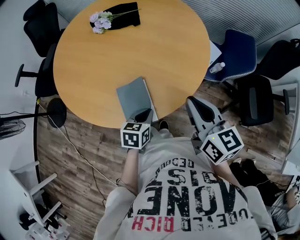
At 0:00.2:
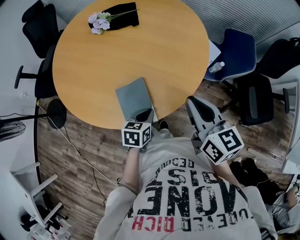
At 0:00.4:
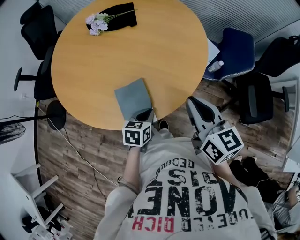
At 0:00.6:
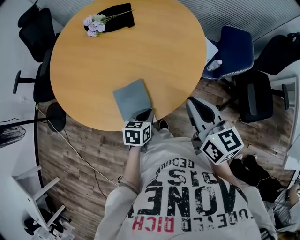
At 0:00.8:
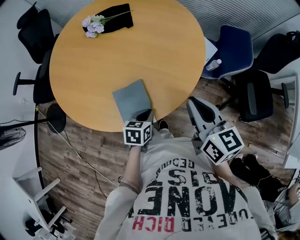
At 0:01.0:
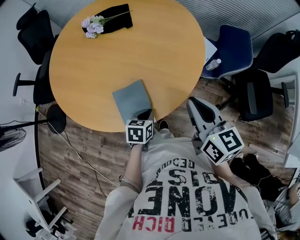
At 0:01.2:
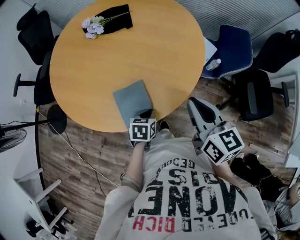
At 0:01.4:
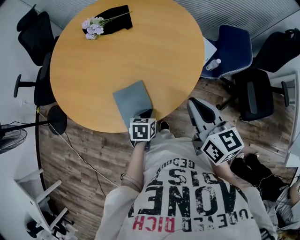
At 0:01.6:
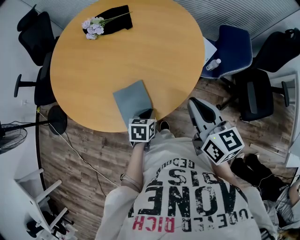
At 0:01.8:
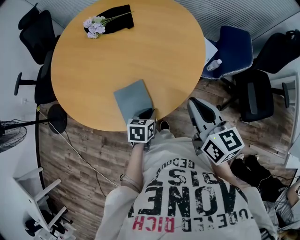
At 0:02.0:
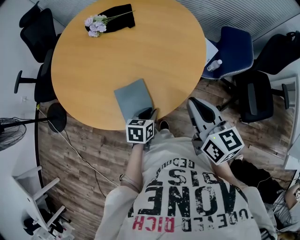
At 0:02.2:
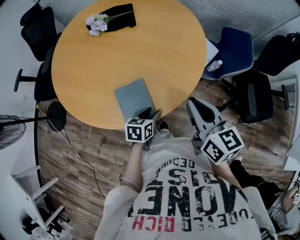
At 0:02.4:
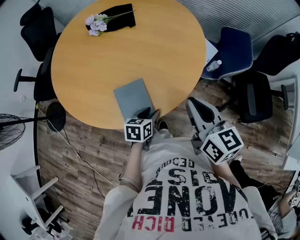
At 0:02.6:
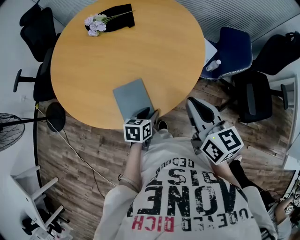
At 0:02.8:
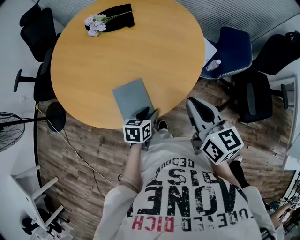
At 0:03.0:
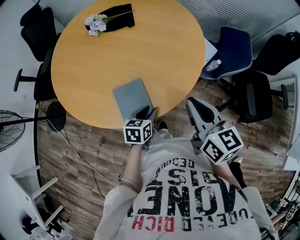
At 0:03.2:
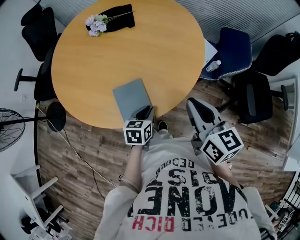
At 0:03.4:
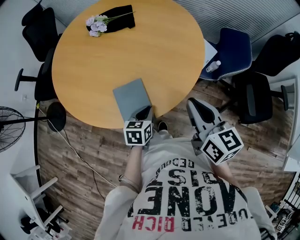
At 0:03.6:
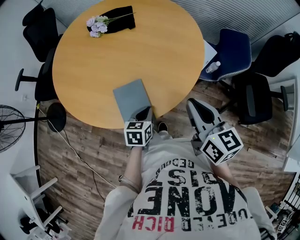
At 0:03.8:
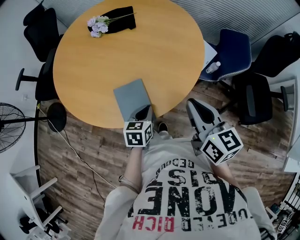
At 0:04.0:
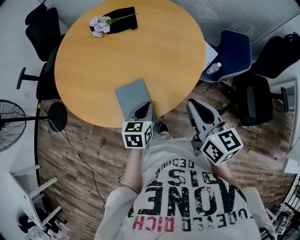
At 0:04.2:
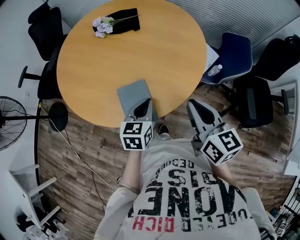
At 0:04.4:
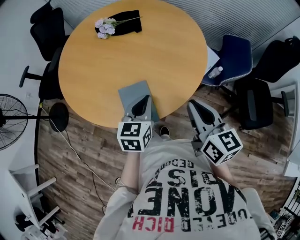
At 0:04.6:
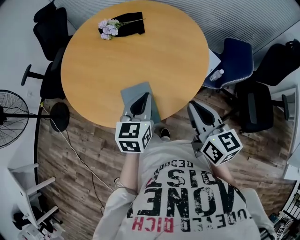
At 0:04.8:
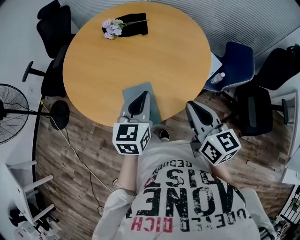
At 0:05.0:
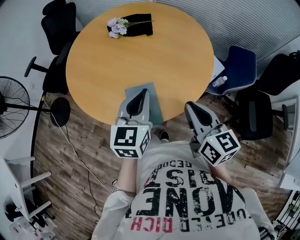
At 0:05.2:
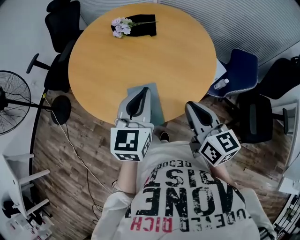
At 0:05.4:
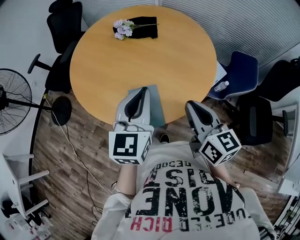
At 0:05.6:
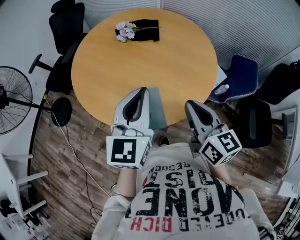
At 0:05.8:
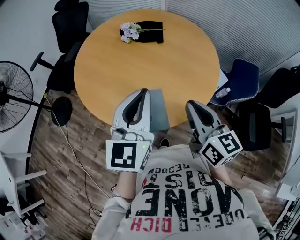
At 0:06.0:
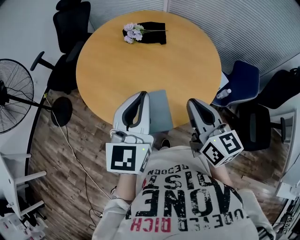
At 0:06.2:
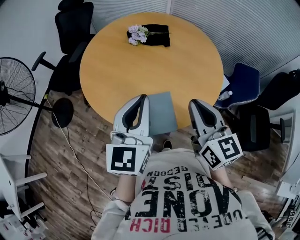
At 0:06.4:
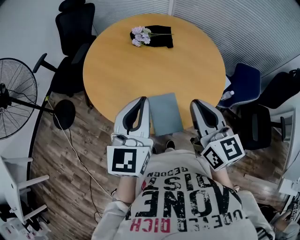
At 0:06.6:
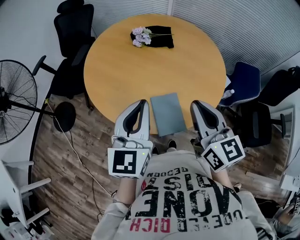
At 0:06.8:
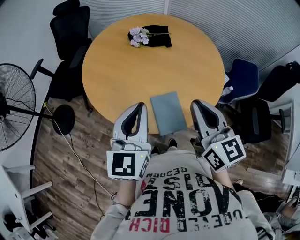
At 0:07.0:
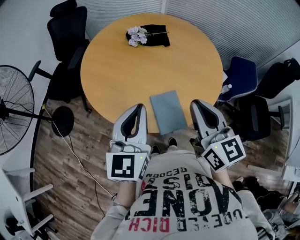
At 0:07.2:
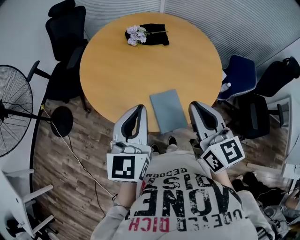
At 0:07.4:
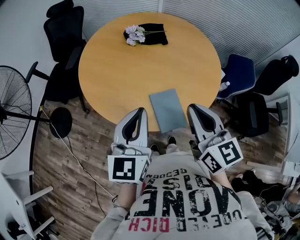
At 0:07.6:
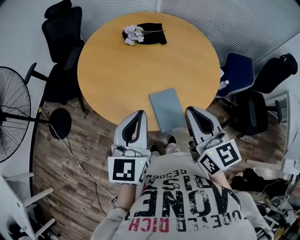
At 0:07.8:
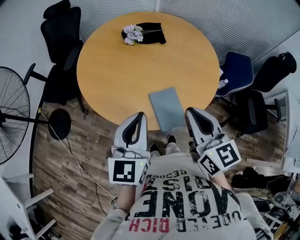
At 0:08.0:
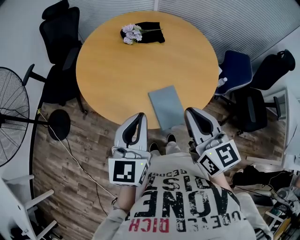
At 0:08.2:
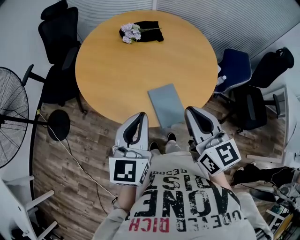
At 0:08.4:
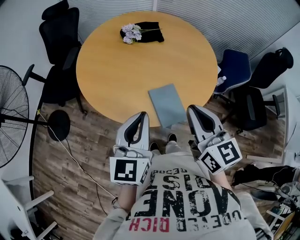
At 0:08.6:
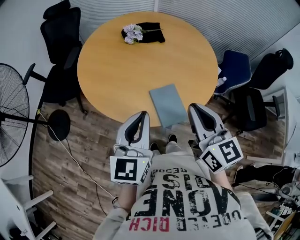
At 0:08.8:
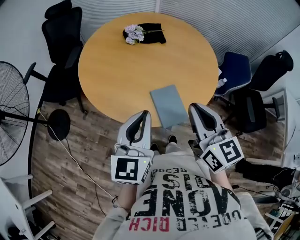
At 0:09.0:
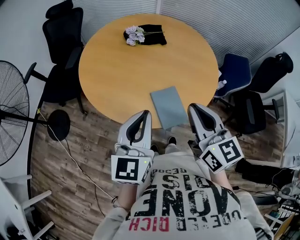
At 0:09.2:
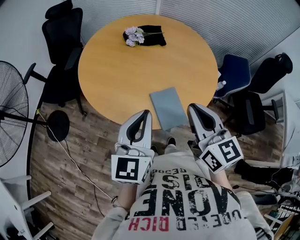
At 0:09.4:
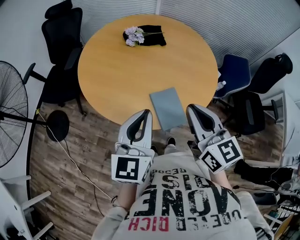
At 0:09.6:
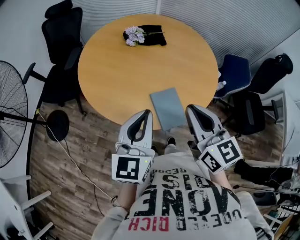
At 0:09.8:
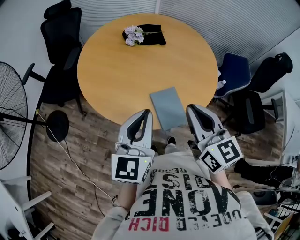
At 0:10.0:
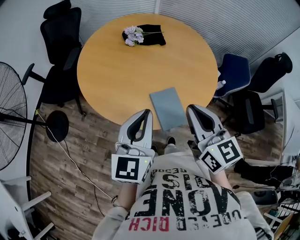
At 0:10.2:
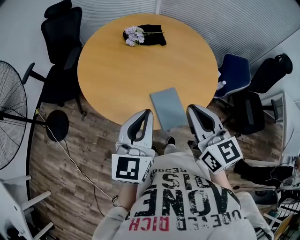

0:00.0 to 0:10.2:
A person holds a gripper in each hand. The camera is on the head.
0:00.0 to 0:01.4: The left gripper ends up roughly 5 cm from where it was.
0:01.4 to 0:03.0: The left gripper opens its fingers.
0:03.0 to 0:04.4: The left gripper moves upward, about 15 cm, swivels some 30 degrees, and closes its fingers.
0:04.4 to 0:05.8: The right gripper is displaced to the left by roughly 5 cm, while the left gripper moves upward and to the left, roughly 20 cm, and swivels roughly 30 degrees.
0:05.8 to 0:07.2: The grippers both shift to the left by some 10 cm.
0:07.2 to 0:10.2: There are only small adjustments of the grippers.

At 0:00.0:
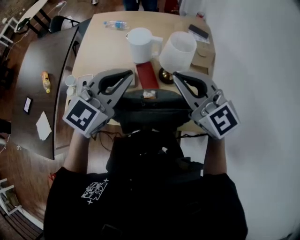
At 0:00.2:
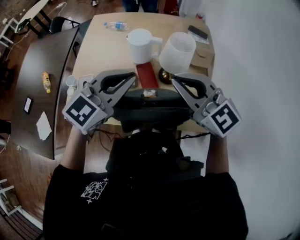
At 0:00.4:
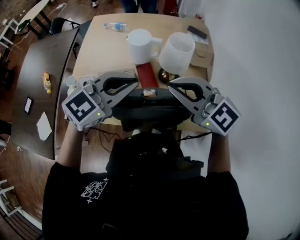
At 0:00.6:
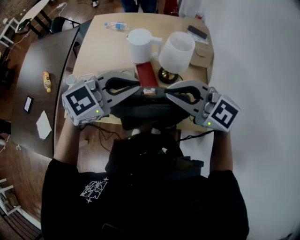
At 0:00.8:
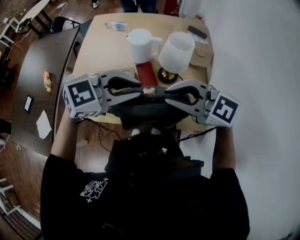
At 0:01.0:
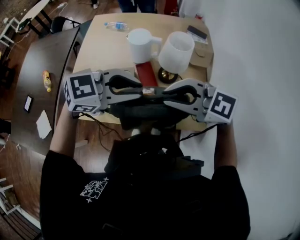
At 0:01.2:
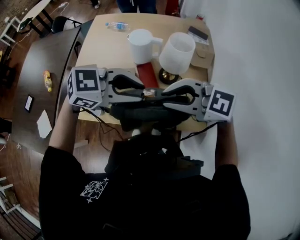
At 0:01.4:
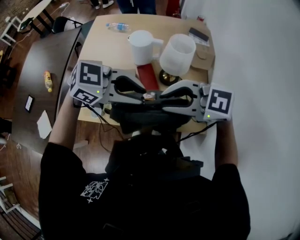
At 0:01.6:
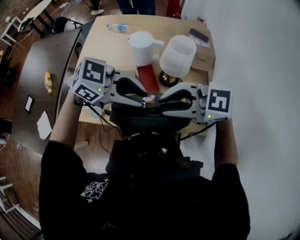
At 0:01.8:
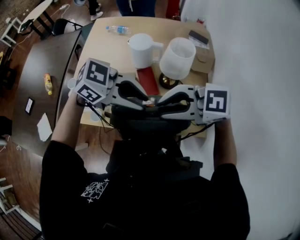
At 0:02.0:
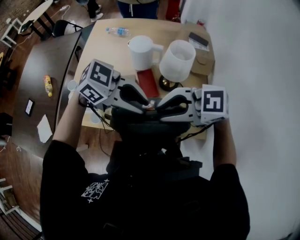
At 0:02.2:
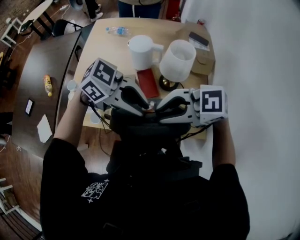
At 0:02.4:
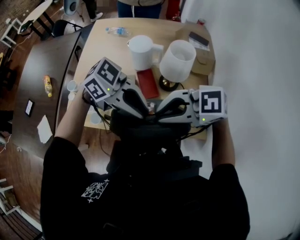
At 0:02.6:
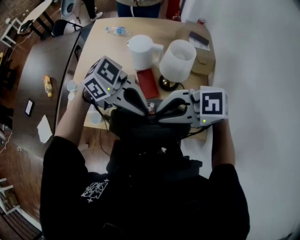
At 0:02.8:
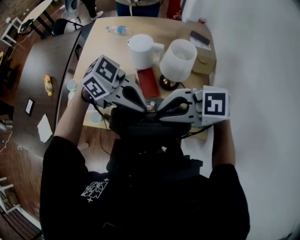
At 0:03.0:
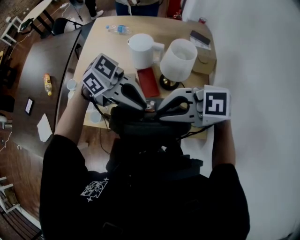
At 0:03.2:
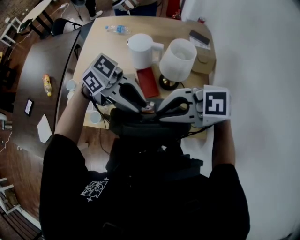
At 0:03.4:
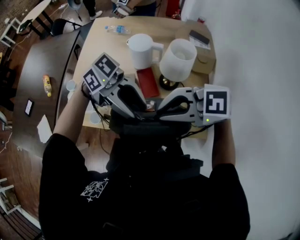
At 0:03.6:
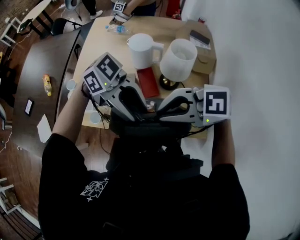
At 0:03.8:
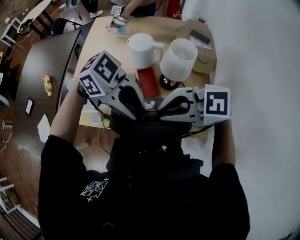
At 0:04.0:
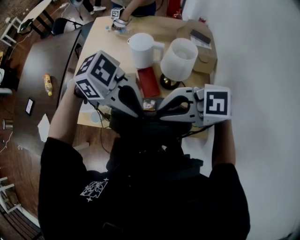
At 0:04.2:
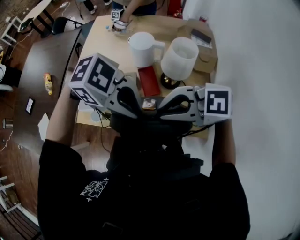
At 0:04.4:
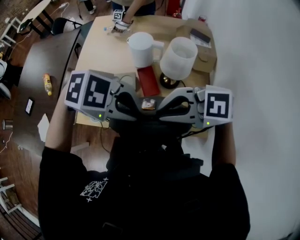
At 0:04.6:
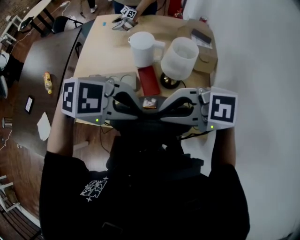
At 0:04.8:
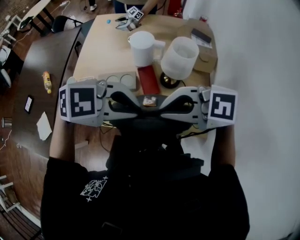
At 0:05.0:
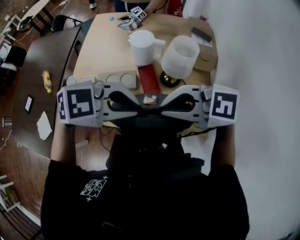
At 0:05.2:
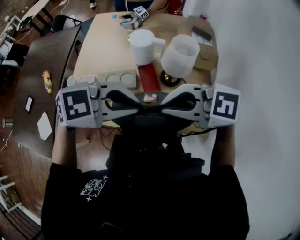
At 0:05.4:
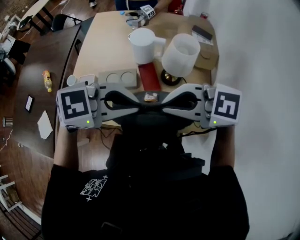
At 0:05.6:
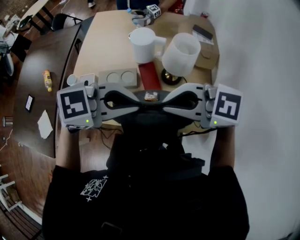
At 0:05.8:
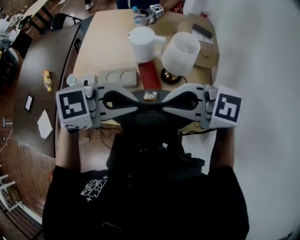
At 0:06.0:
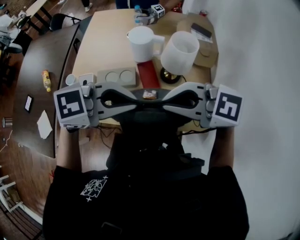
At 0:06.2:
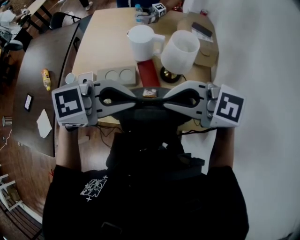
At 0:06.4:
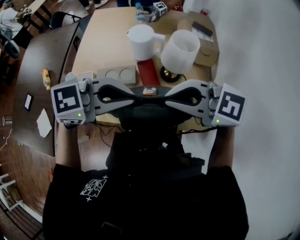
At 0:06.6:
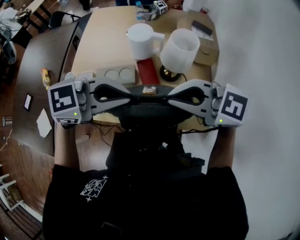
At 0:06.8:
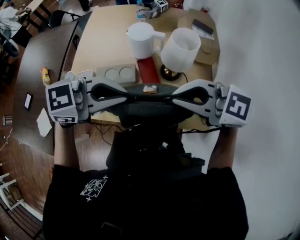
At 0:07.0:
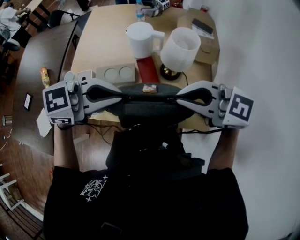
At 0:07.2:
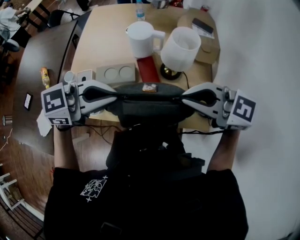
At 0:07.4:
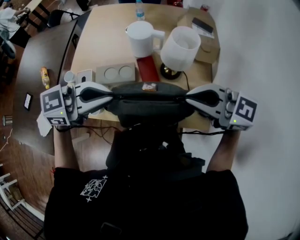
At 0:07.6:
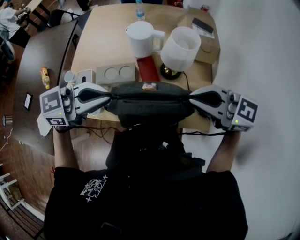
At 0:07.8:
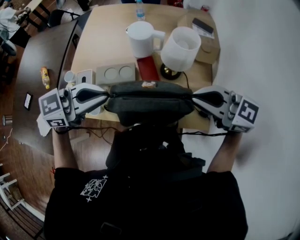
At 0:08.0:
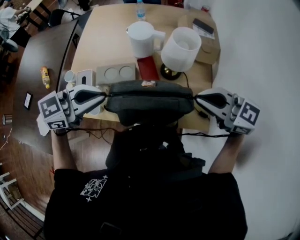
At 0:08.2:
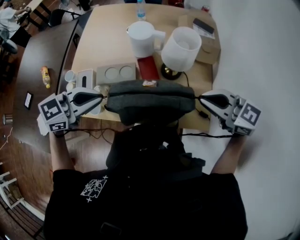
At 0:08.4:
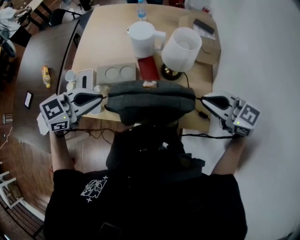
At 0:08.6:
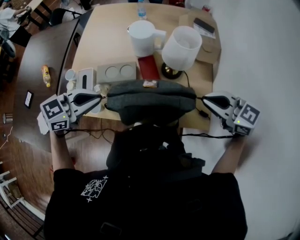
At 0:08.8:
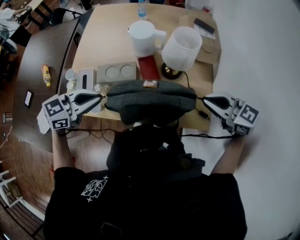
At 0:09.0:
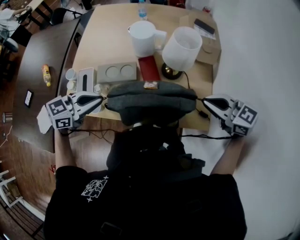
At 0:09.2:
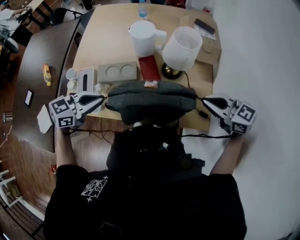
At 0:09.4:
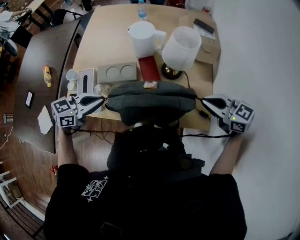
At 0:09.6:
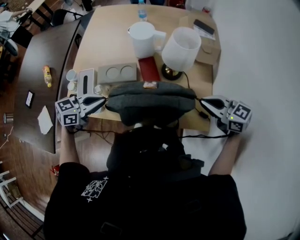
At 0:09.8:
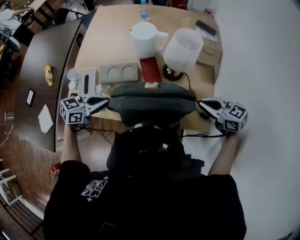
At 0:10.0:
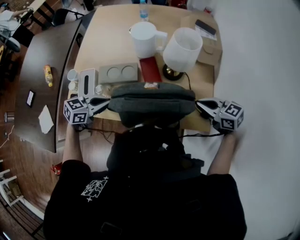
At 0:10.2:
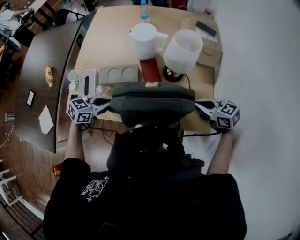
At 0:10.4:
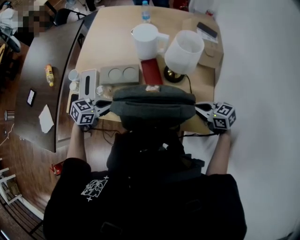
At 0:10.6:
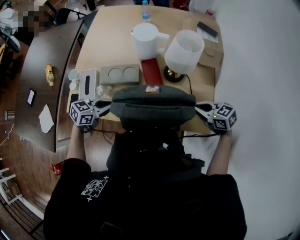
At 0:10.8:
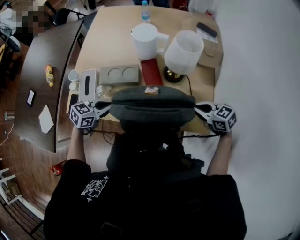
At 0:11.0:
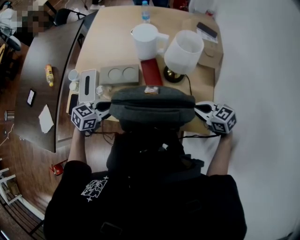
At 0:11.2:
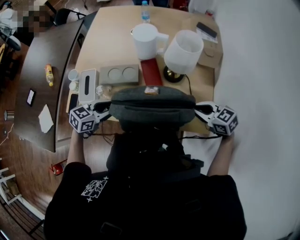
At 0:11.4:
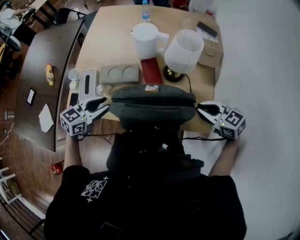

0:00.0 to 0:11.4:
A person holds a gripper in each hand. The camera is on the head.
0:00.0 to 0:01.4: The right gripper moves some 10 cm, changes its angle by approximately 40 degrees, and opens up. Meanwhile the left gripper changes place by about 10 cm, swivels approximately 60 degrees, and opens up.
0:01.4 to 0:02.8: The left gripper changes its angle by about 20 degrees, and closes up.
0:02.8 to 0:04.2: The left gripper turns by approximately 20 degrees, and opens and closes again.
0:04.2 to 0:05.6: The left gripper changes its angle by approximately 40 degrees.
0:05.6 to 0:07.2: The right gripper changes place by about 5 cm. Meanwhile the left gripper ends up approximately 5 cm from where it was.
0:07.2 to 0:08.6: The left gripper travels downward by approximately 10 cm; the right gripper changes place by roughly 10 cm.
0:08.6 to 0:10.0: Both grippers travel together downward, roughly 15 cm.
0:10.0 to 0:11.4: The left gripper opens up.

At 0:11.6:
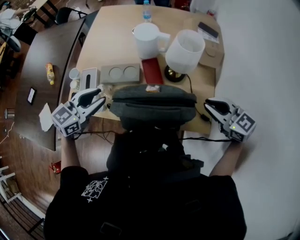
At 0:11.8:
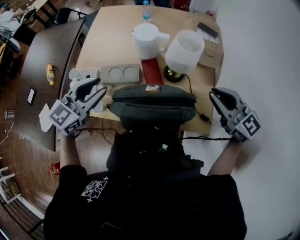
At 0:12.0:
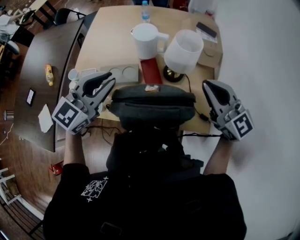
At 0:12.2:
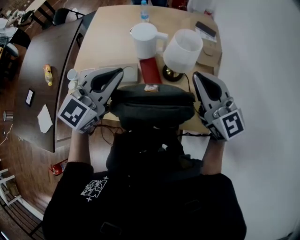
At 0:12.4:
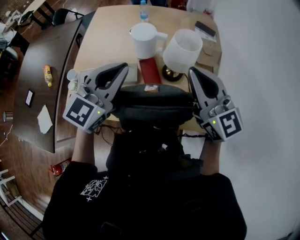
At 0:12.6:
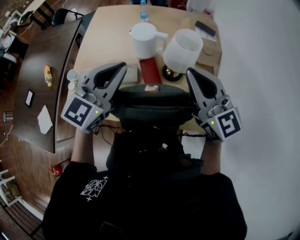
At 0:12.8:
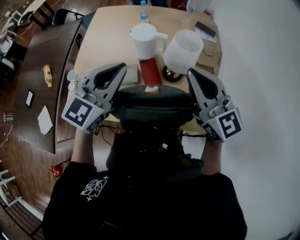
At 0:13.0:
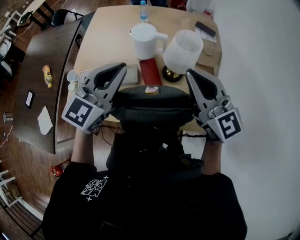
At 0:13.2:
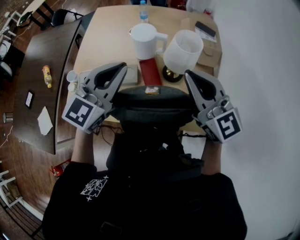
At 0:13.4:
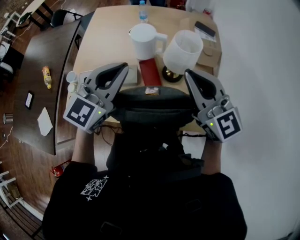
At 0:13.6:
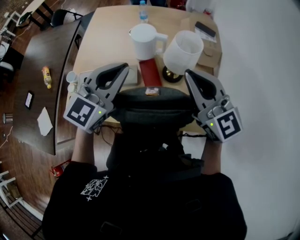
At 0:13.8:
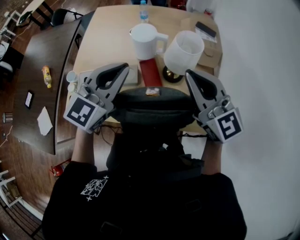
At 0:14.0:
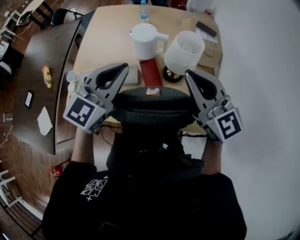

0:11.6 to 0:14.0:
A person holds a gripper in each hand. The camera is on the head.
0:11.6 to 0:12.8: The right gripper goes about 15 cm upward, to the left and forward, and turns by some 30 degrees, while the left gripper shifts some 20 cm upward, to the right and forward, rotates roughly 20 degrees, and closes up.
0:12.8 to 0:14.0: The two grippers keep their place.
